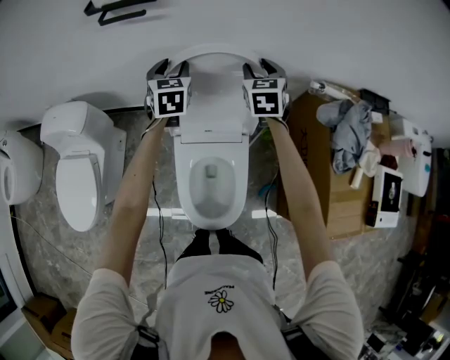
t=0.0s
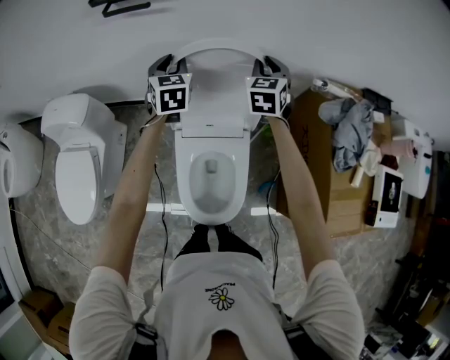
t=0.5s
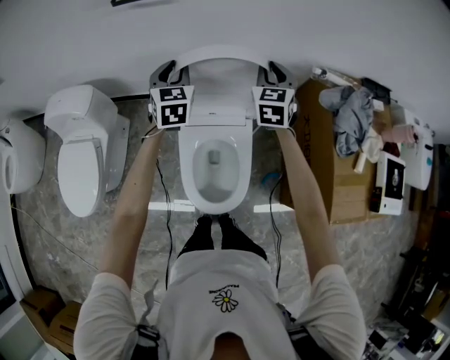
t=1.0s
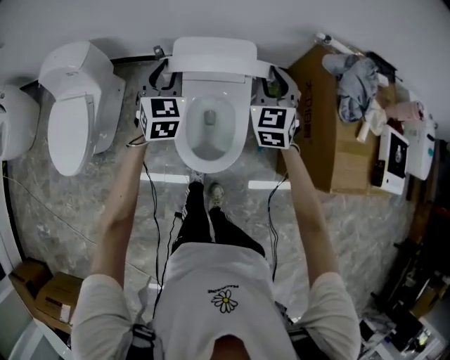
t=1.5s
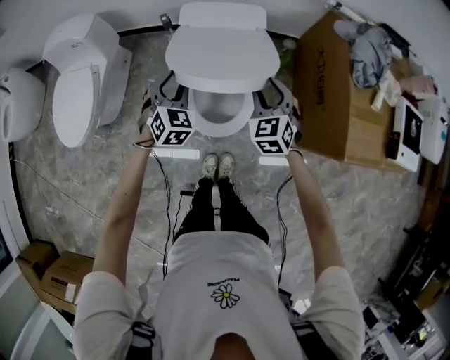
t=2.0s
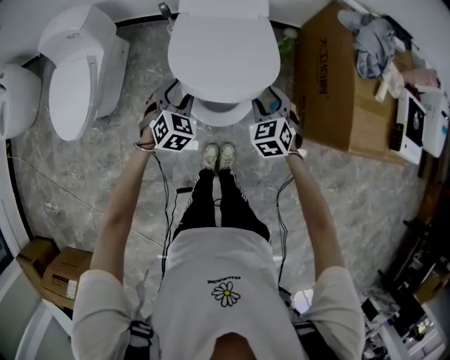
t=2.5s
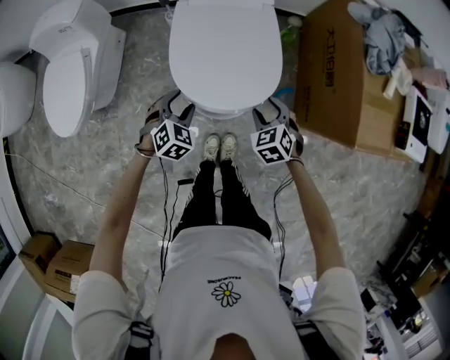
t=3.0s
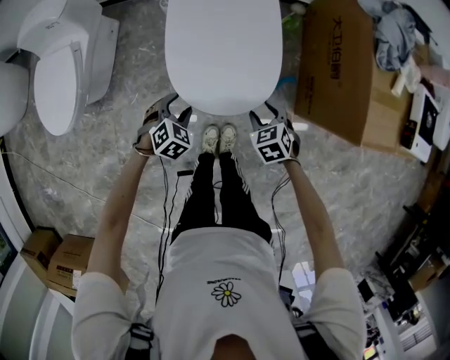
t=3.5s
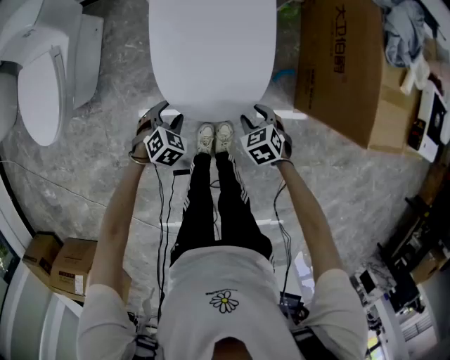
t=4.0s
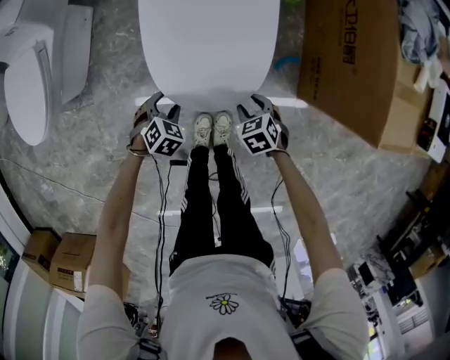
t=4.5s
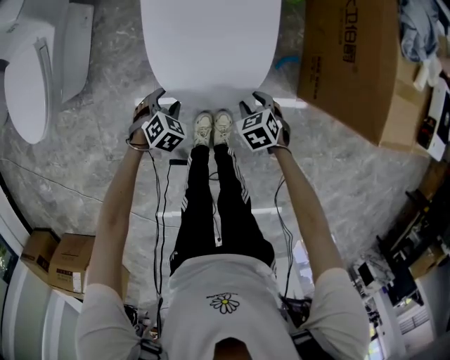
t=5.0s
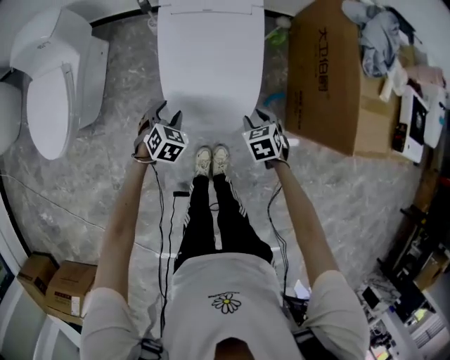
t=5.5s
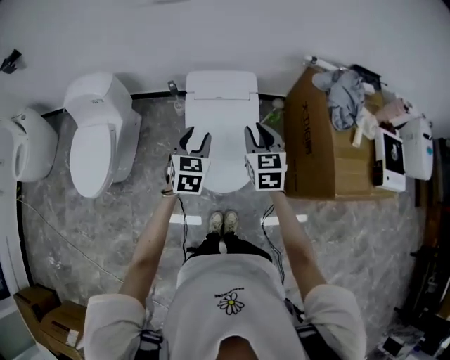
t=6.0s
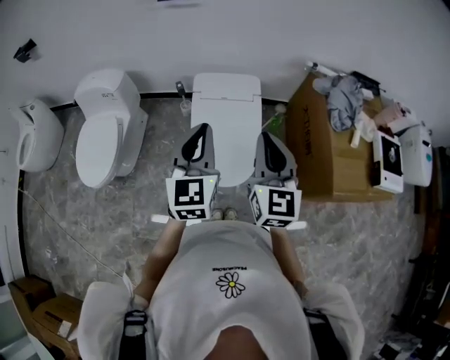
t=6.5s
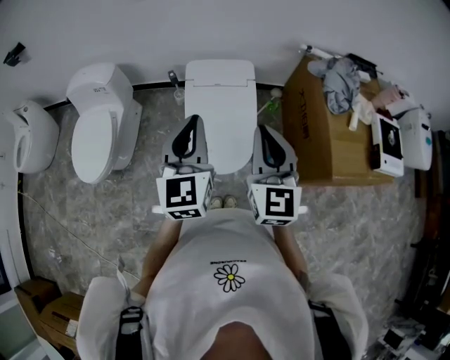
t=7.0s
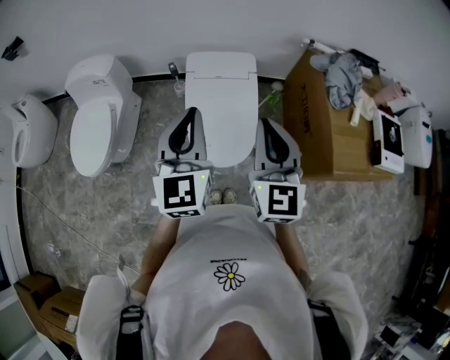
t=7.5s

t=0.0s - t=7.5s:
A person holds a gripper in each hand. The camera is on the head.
t=0.0s - t=2.0s: The pair of grippers is taken backward, approximately 40 cm. The left gripper changes its angle by approximately 30 degrees, while the right gripper closes and opens again.
t=2.0s - t=4.0s: The two grippers go about 30 cm downward and backward. The left gripper tips its fingers downward by about 30 degrees. Meanwhile the right gripper tips its fingers downward by roughly 30 degrees.
t=4.0s - t=5.5s: The left gripper heads forward and upward, covering approximately 10 cm, while the right gripper heads forward, covering some 5 cm.
t=5.5s - t=7.5s: The grippers both shift upward by about 50 cm. The left gripper tilts its fingers about 60 degrees upward, and closes up, while the right gripper tilts its fingers some 60 degrees upward, and closes its fingers.

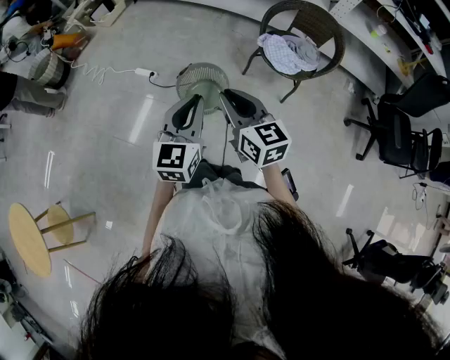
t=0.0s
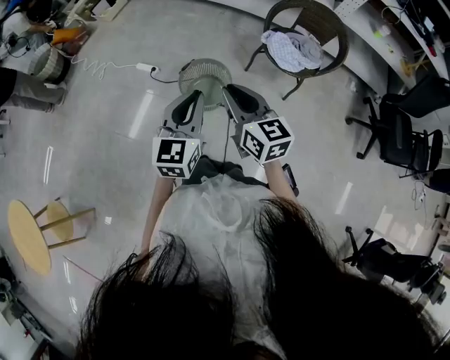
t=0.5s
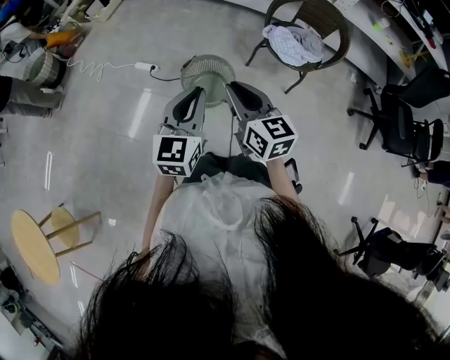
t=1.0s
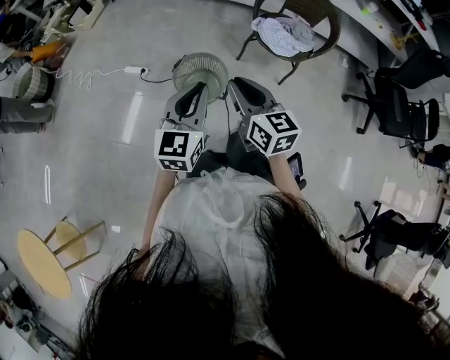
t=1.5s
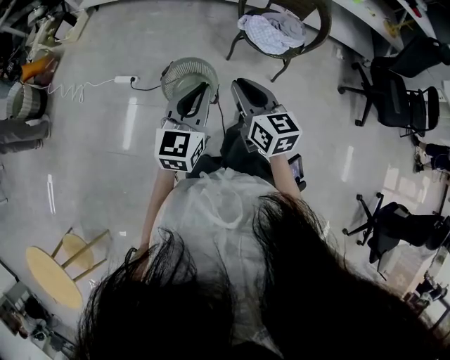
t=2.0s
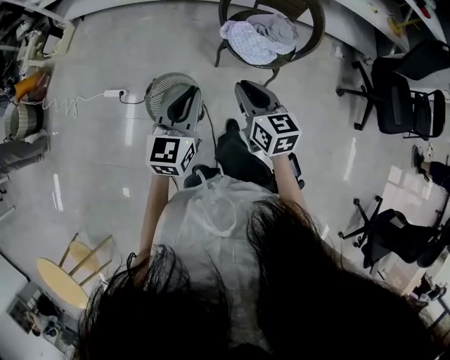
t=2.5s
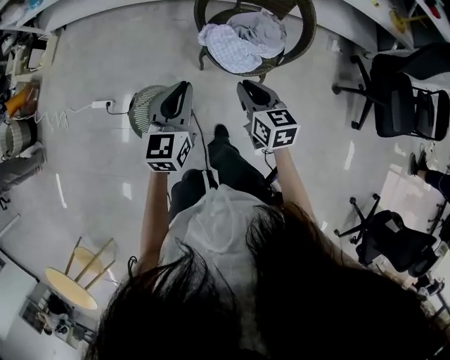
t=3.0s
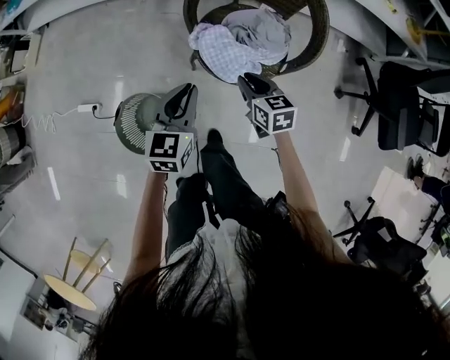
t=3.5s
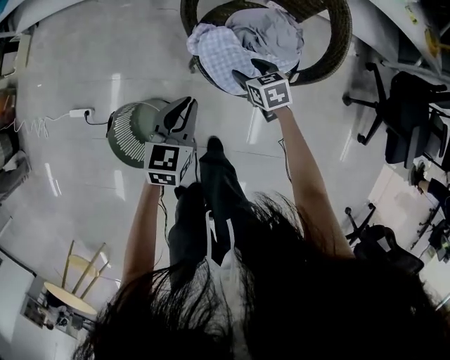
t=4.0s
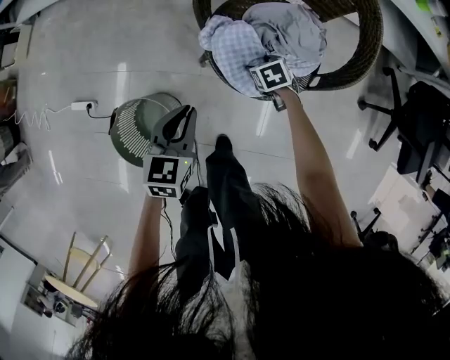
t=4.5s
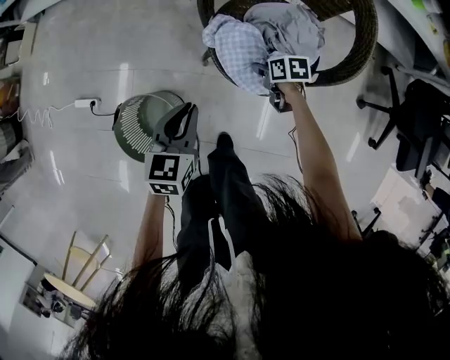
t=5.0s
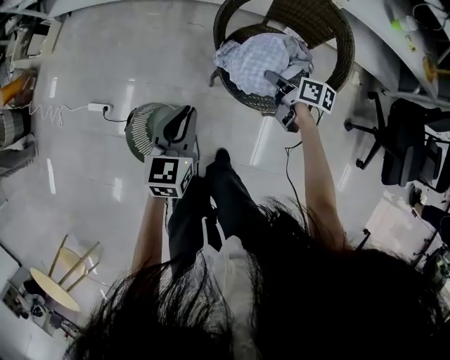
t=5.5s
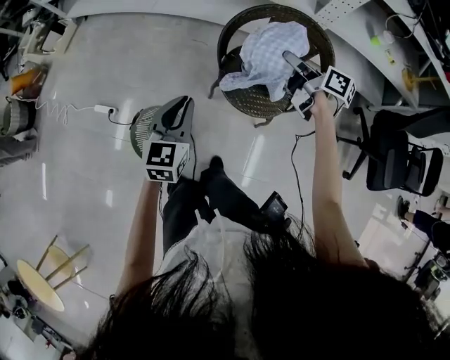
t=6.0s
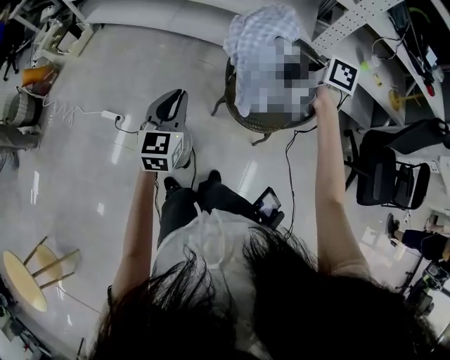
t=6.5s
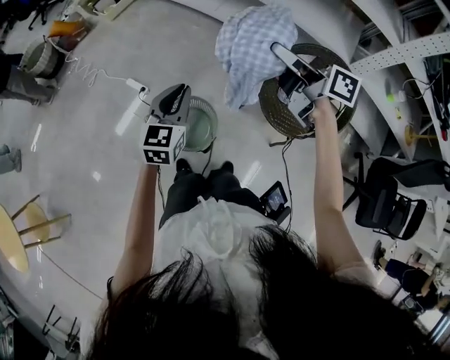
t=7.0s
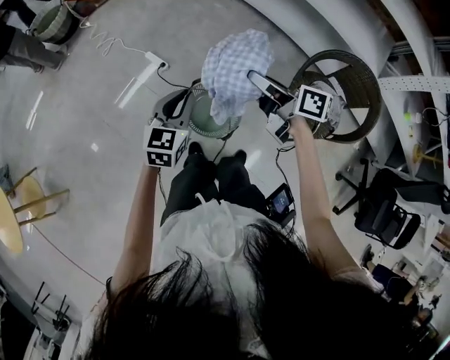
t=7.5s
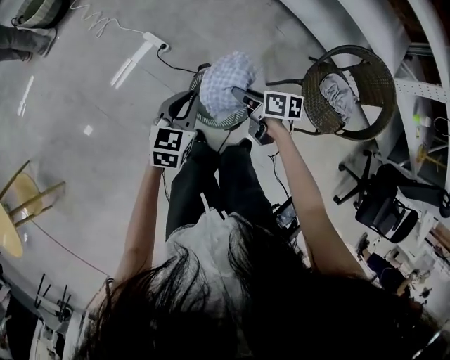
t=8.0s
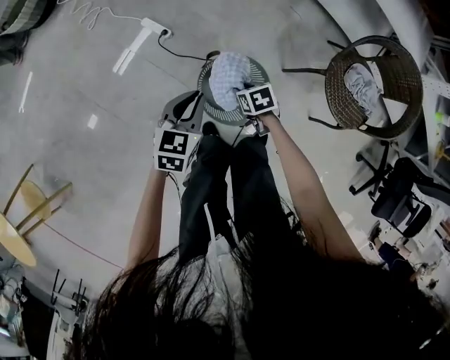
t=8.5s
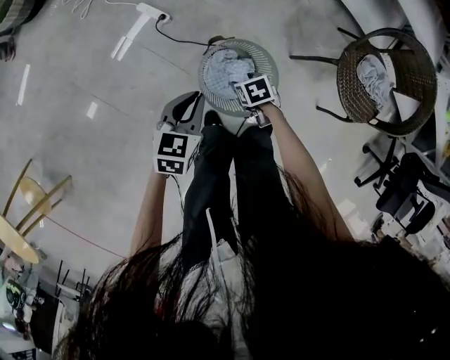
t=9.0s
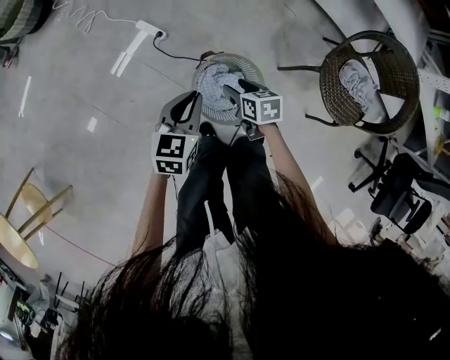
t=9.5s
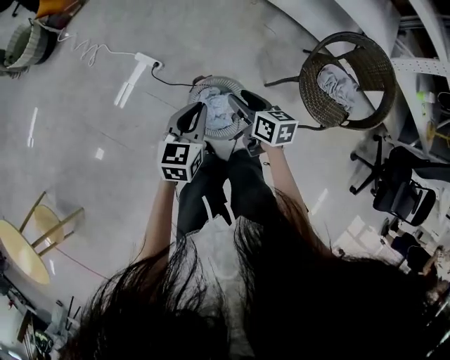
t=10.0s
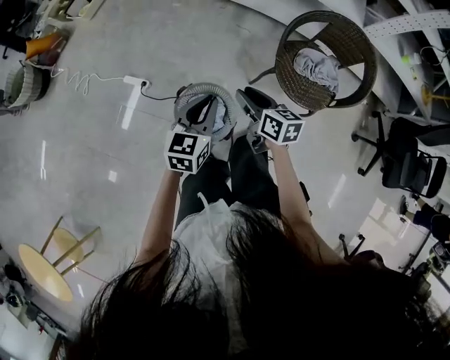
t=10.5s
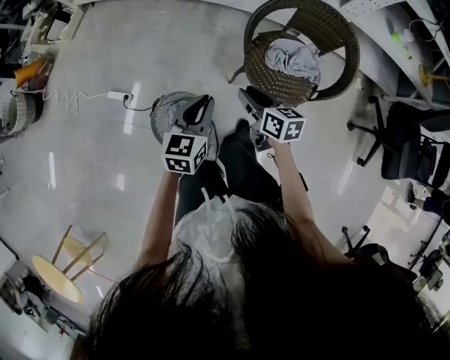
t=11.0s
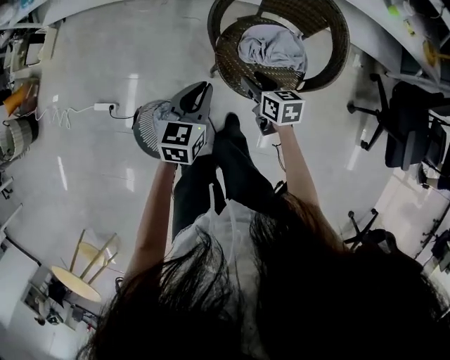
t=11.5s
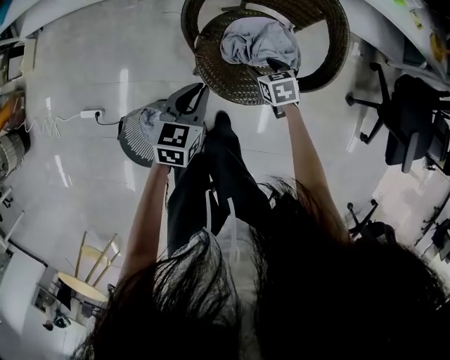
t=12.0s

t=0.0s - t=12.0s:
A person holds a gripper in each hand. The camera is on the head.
t=0.0s - t=2.0s: The right gripper travels forward and to the right by about 10 cm. The left gripper heads forward, covering approximately 10 cm.
t=2.0s - t=4.0s: The pair of grippers is taken forward and to the right, some 50 cm. The two grippers go approximately 35 cm downward. The left gripper swivels roughly 20 degrees, while the right gripper tips its fingers downward by about 40 degrees, and opens.
t=4.0s - t=6.0s: The left gripper shifts some 20 cm upward and to the left; the right gripper moves upward, roughly 30 cm, tips its fingers upward by approximately 40 degrees, and closes up.
t=6.0s - t=8.0s: The left gripper moves about 40 cm, and rotates roughly 20 degrees, while the right gripper changes place by about 60 cm, and rotates roughly 40 degrees.
t=8.0s - t=10.0s: The left gripper moves some 15 cm downward and comes back, while the right gripper travels downward and back again, roughly 25 cm each way, turns by approximately 20 degrees, and opens.
t=10.0s - t=12.0s: The pair of grippers is taken about 50 cm. The left gripper rotates about 30 degrees, while the right gripper swivels about 30 degrees.

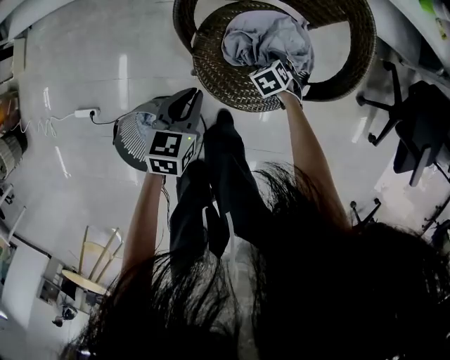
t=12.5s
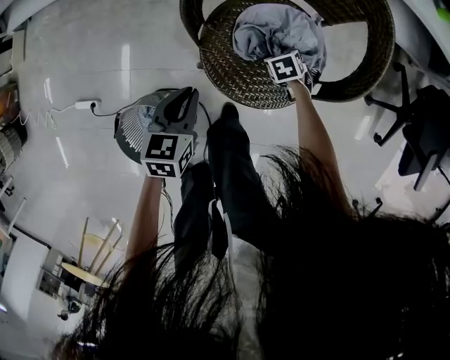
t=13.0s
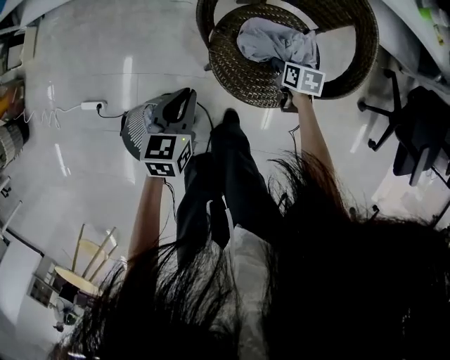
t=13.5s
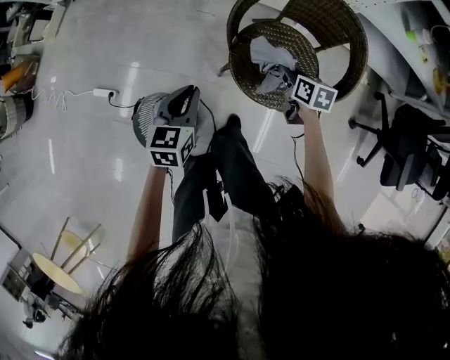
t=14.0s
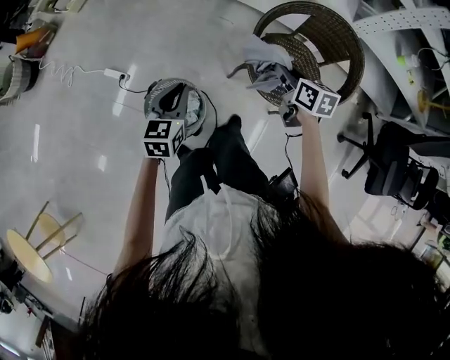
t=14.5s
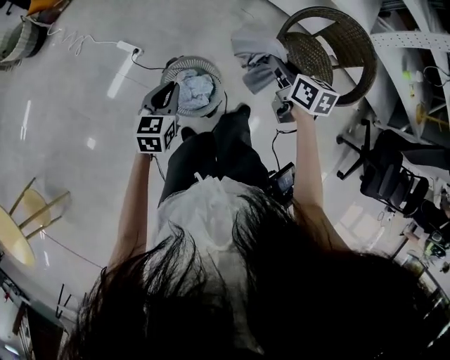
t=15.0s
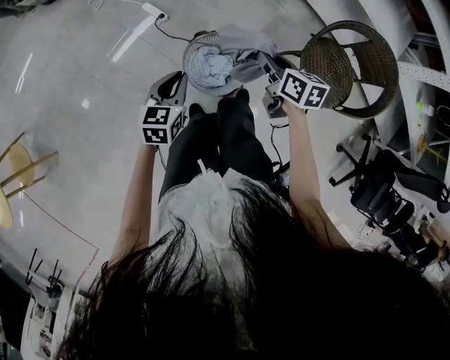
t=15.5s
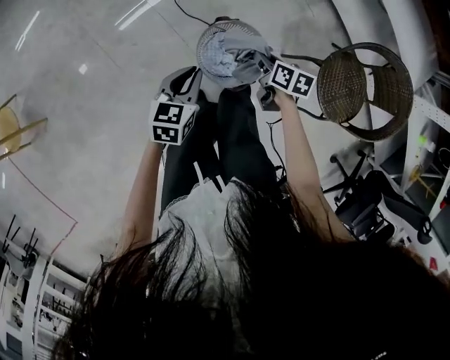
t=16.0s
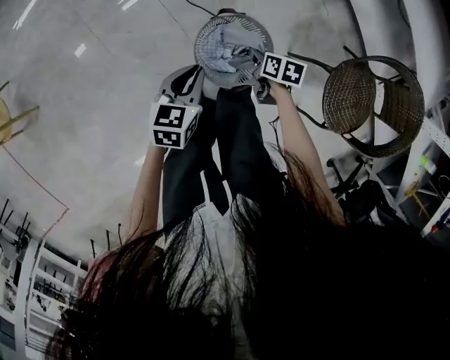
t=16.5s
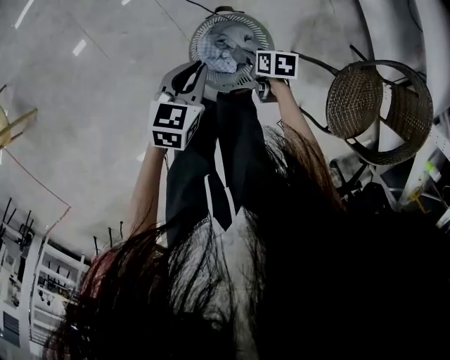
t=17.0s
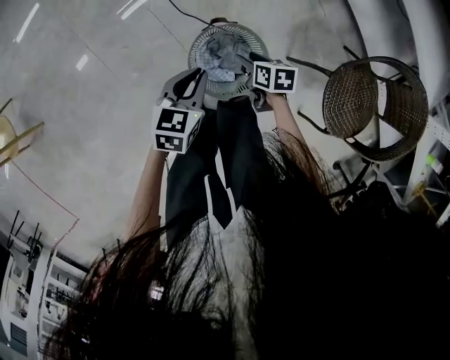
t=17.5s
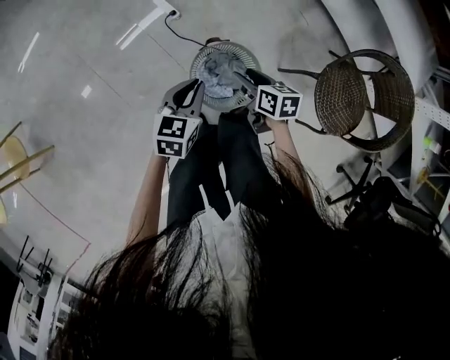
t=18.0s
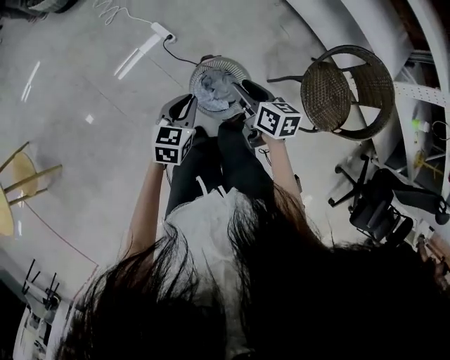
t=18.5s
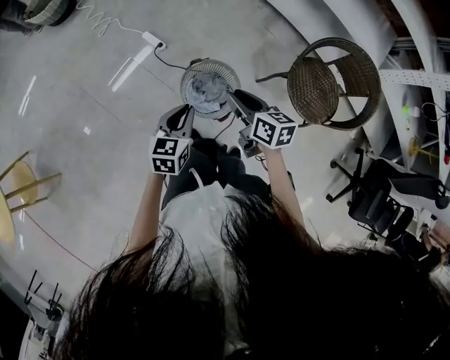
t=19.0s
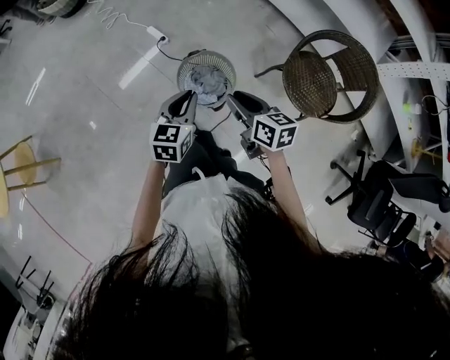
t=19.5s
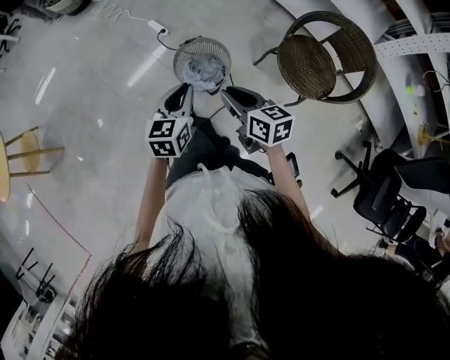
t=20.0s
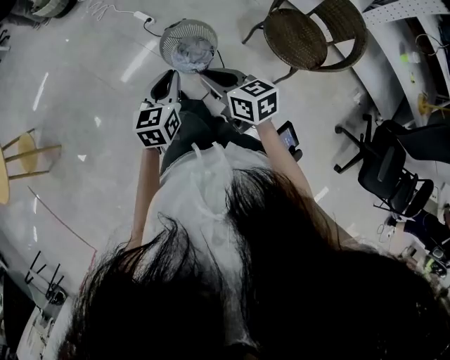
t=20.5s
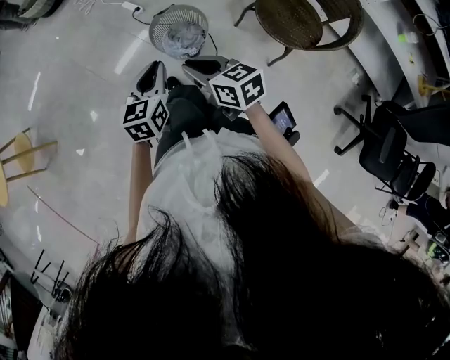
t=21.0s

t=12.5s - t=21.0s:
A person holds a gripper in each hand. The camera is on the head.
t=12.5s - t=14.5s: The left gripper changes place by about 35 cm, and turns by roughly 30 degrees. The right gripper goes roughly 40 cm upward, angles its fingers upward, by some 40 degrees, and closes up.
t=14.5s - t=16.5s: The left gripper shifts by about 35 cm, and turns by approximately 30 degrees. Meanwhile the right gripper moves roughly 50 cm, and swivels some 40 degrees.
t=16.5s - t=19.0s: The right gripper goes approximately 30 cm upward, swivels approximately 30 degrees, and opens, then closes once more, while the left gripper is displaced upward by roughly 15 cm.
t=19.0s - t=21.0s: The grippers both shift backward by roughly 25 cm. The right gripper swivels approximately 20 degrees.
